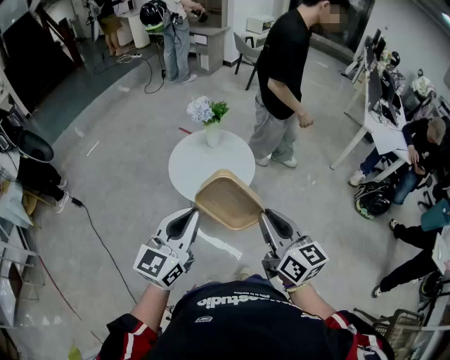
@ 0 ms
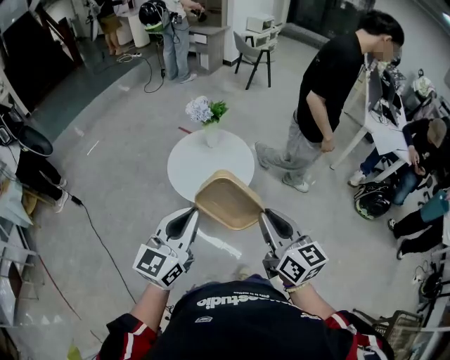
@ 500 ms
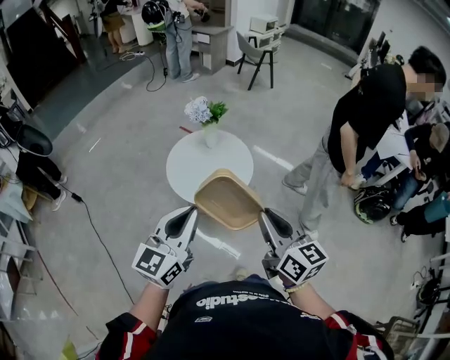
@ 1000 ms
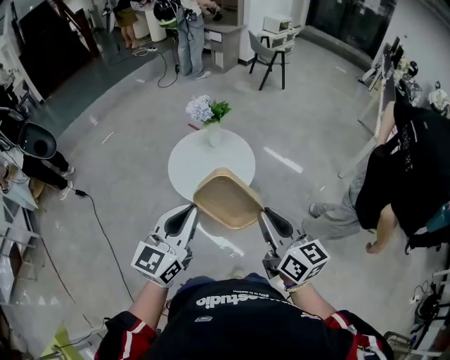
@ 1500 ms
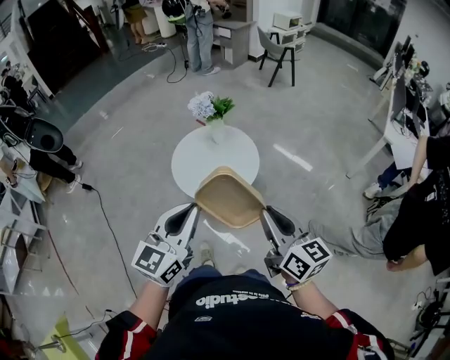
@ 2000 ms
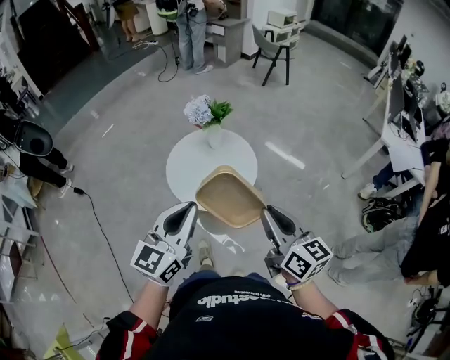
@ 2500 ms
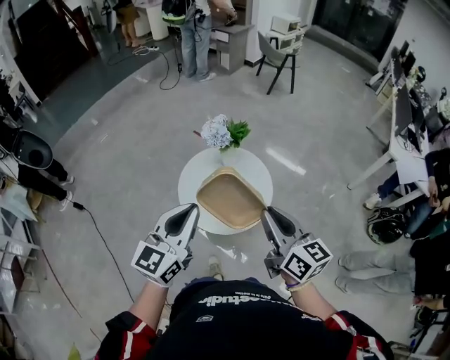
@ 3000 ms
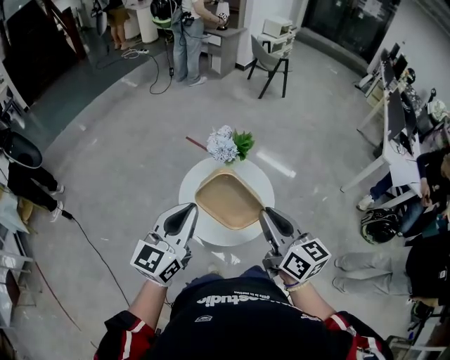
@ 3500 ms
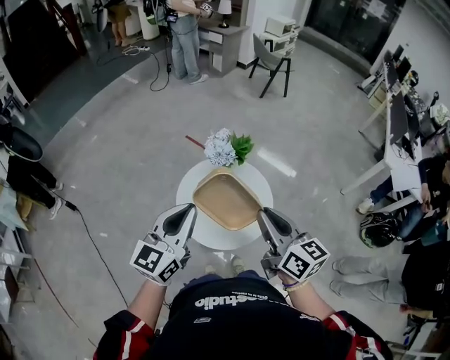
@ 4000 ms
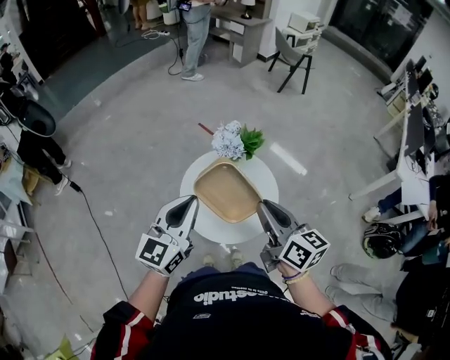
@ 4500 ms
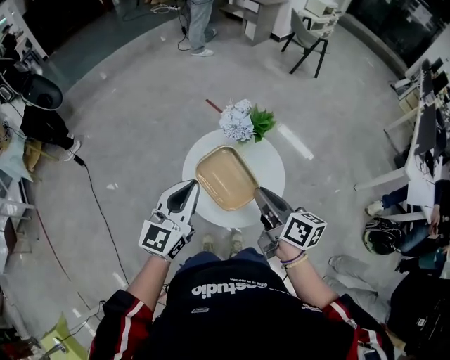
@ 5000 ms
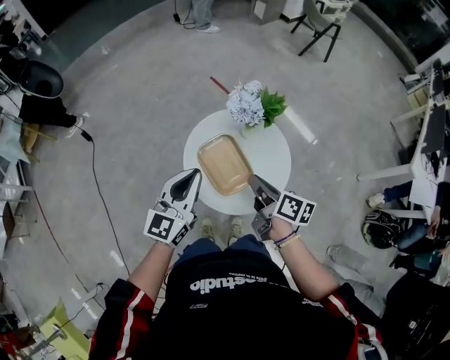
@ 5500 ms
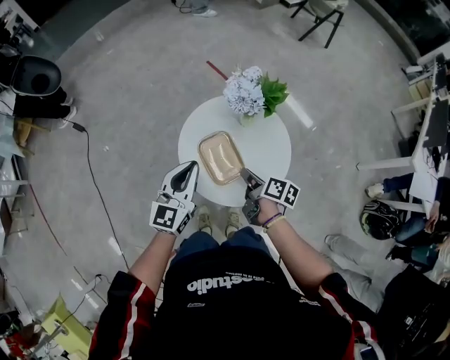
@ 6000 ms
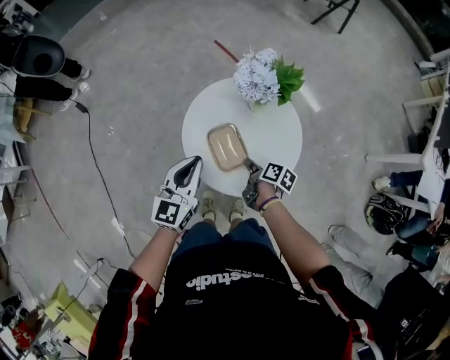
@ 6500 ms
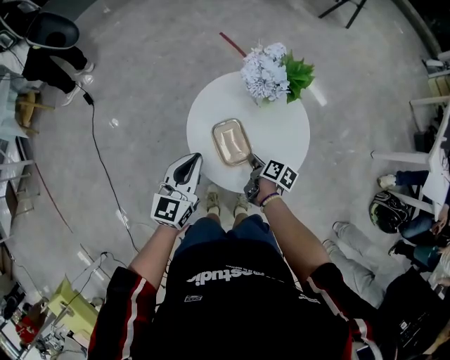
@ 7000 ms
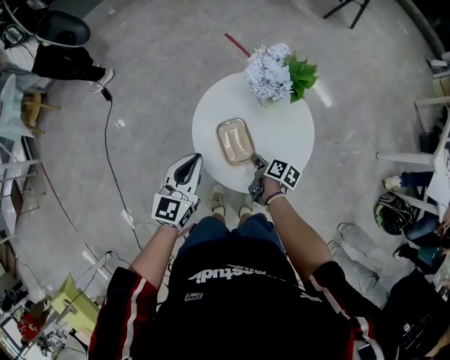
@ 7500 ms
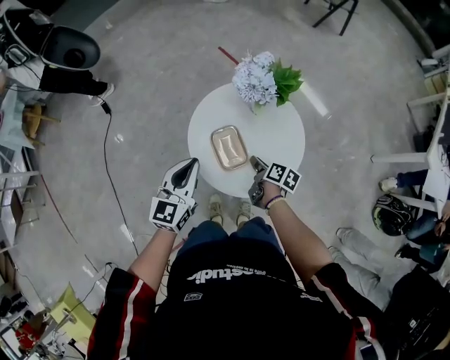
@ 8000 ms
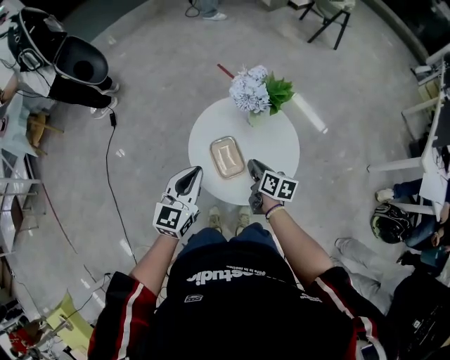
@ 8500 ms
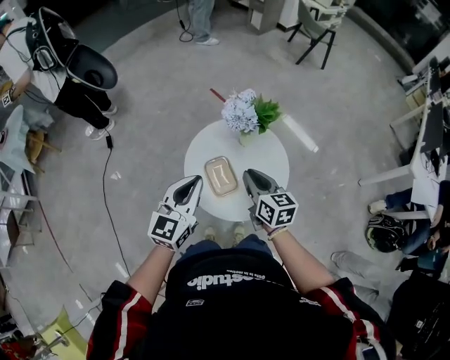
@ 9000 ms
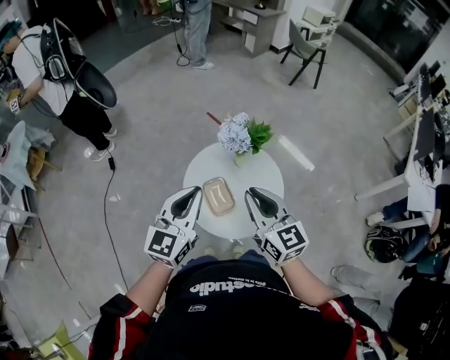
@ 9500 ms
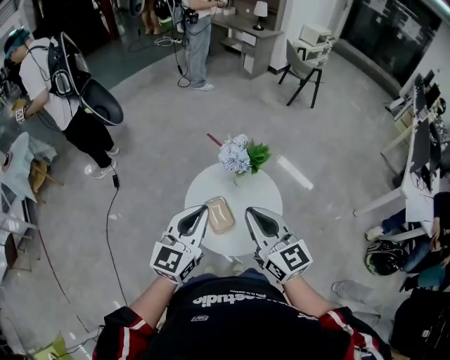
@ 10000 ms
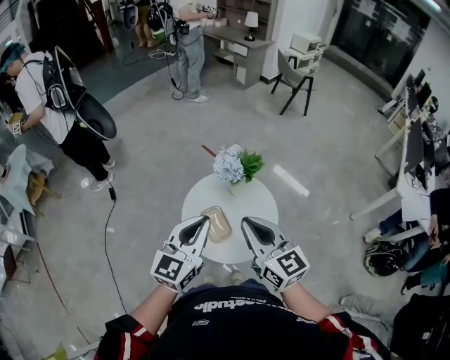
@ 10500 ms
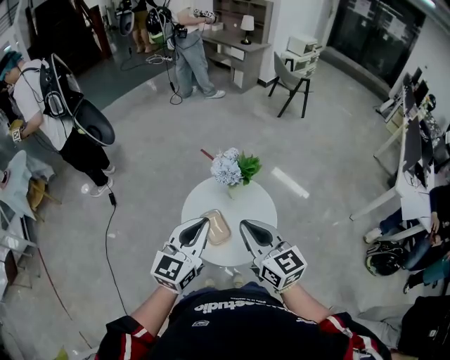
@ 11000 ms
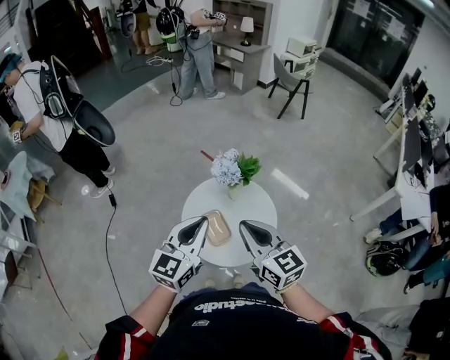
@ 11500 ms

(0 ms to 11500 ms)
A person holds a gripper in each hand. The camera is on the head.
0 ms - 2000 ms: The grippers both shift to the right by about 10 cm.
2000 ms - 4000 ms: The two grippers go approximately 30 cm forward and to the left.
4000 ms - 6000 ms: The right gripper heads downward, covering some 30 cm, and changes its angle by some 50 degrees. The left gripper shifts approximately 20 cm downward.
6000 ms - 7500 ms: The left gripper shifts about 5 cm downward. Meanwhile the right gripper heads downward, covering some 15 cm.
7500 ms - 9500 ms: The left gripper goes about 20 cm upward; the right gripper shifts approximately 40 cm upward, and rolls counterclockwise, seen from behind, by some 60 degrees.
9500 ms - 11500 ms: The right gripper moves about 5 cm.

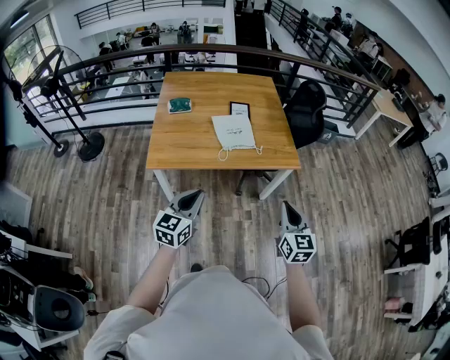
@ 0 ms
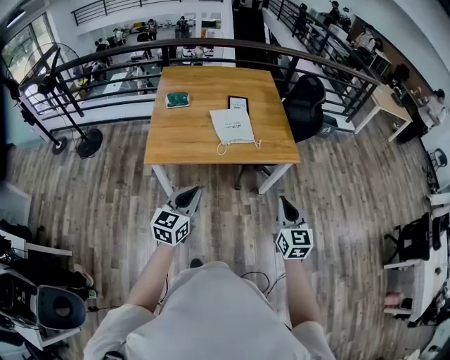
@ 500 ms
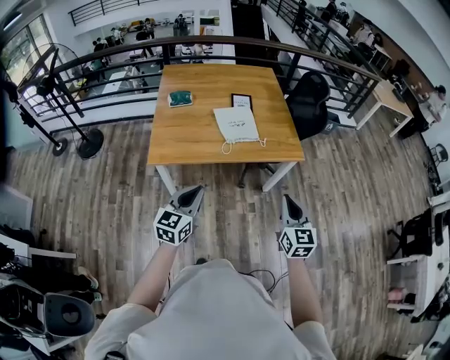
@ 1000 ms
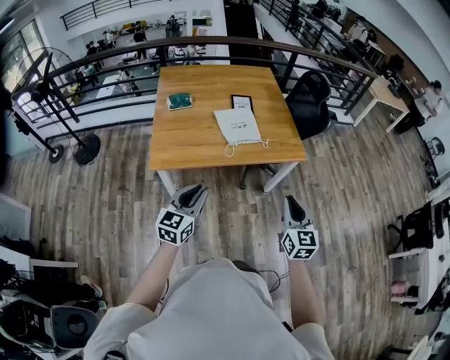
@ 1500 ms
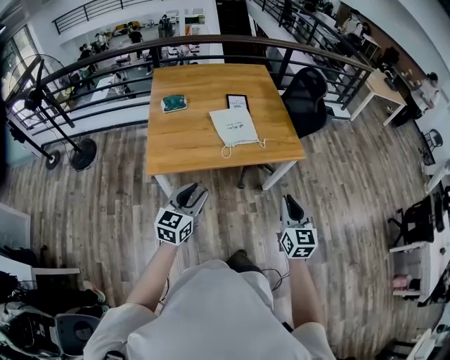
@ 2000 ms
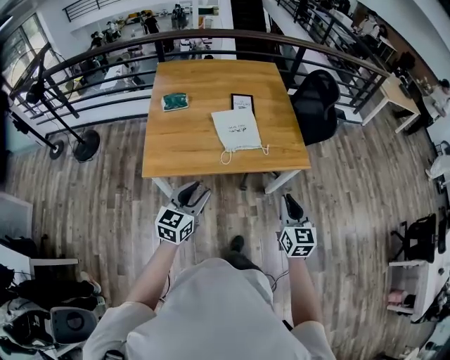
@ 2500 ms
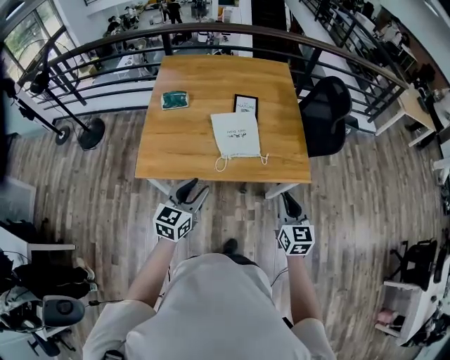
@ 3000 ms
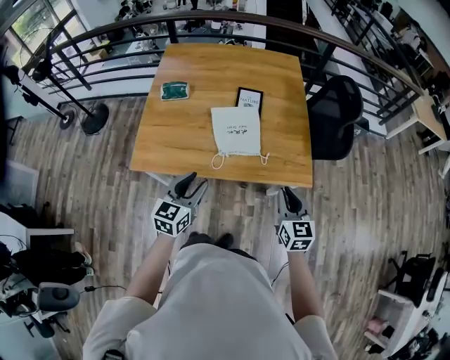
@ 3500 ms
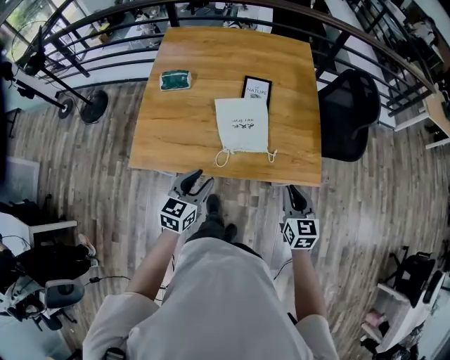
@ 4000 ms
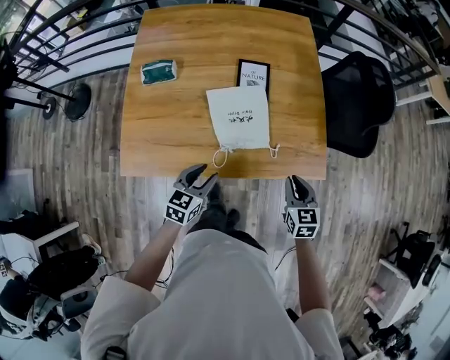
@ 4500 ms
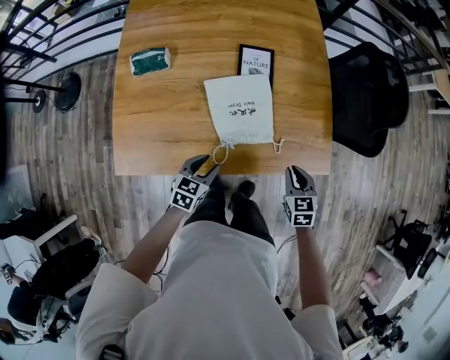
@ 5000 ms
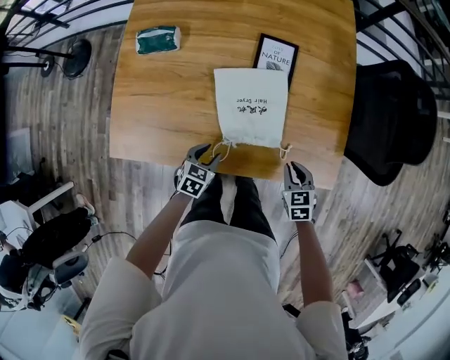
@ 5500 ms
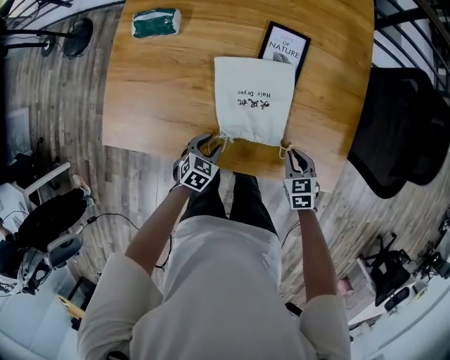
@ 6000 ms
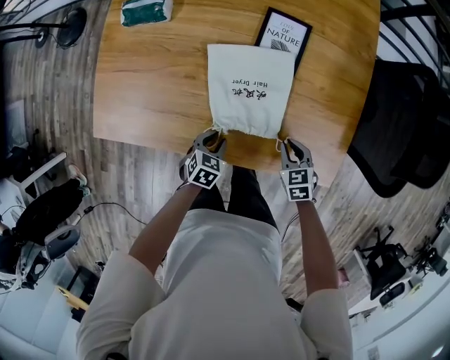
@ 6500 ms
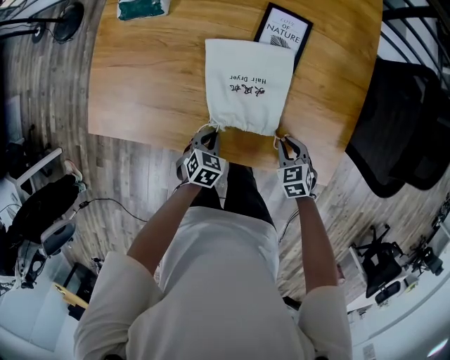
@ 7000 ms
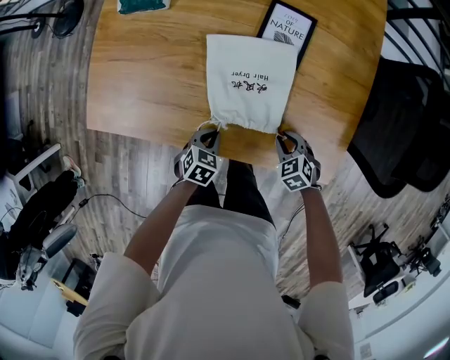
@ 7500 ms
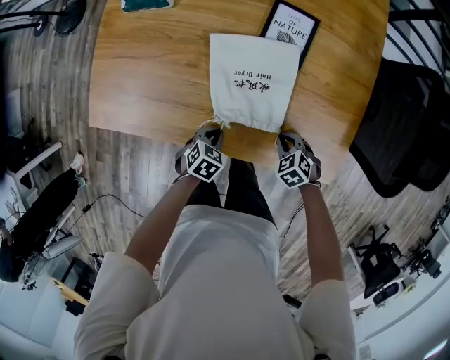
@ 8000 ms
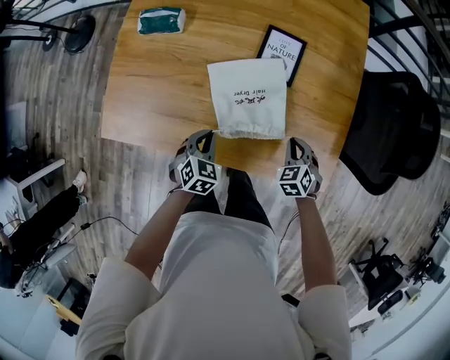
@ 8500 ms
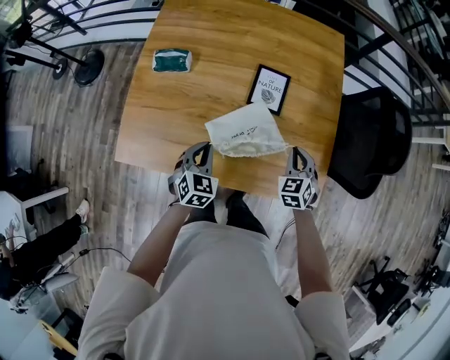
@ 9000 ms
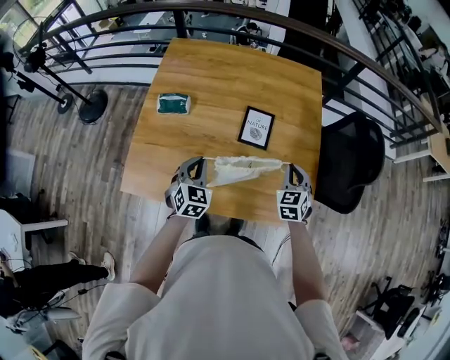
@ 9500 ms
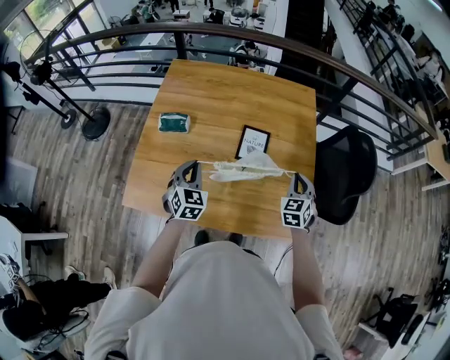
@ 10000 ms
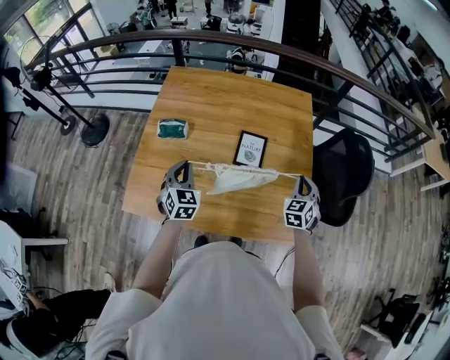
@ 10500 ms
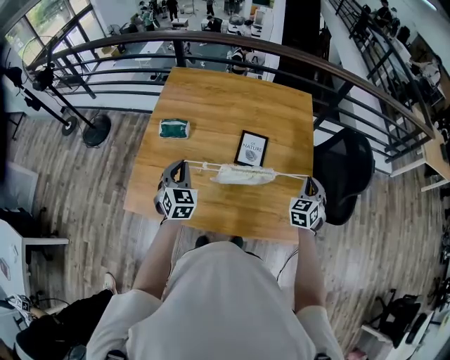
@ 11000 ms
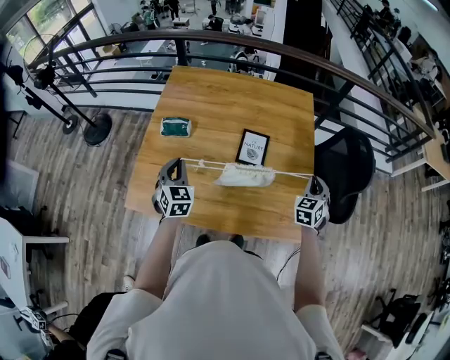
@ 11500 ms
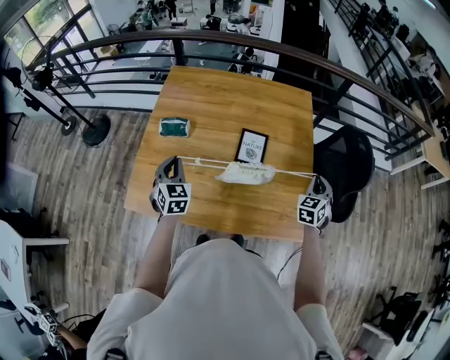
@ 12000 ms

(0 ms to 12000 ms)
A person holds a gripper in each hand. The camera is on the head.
0 ms - 2000 ms: The two grippers go some 5 cm to the left. The left gripper opens up.
2000 ms - 4000 ms: Both grippers move forward, some 30 cm. The right gripper rotates roughly 20 degrees.
4000 ms - 6000 ms: Both grippers travel together downward and forward, roughly 30 cm. The right gripper swivels about 40 degrees. The left gripper tips its fingers downward by about 30 degrees.
6000 ms - 8000 ms: The right gripper goes about 5 cm downward, and turns by roughly 30 degrees. Meanwhile the left gripper closes.
8000 ms - 10000 ms: The grippers both shift upward by about 35 cm. The right gripper points its fingers approximately 40 degrees further upward, while the left gripper points its fingers roughly 40 degrees further upward.
10000 ms - 12000 ms: The left gripper heads to the left, covering some 5 cm. The right gripper heads to the right, covering approximately 10 cm.

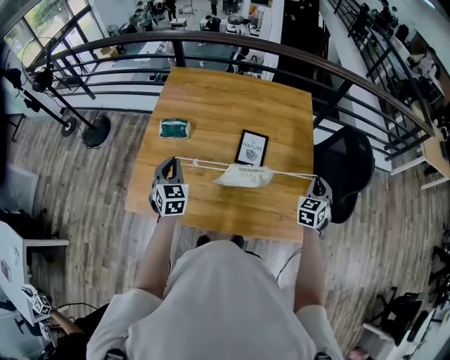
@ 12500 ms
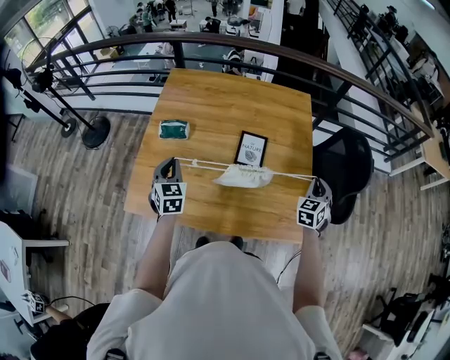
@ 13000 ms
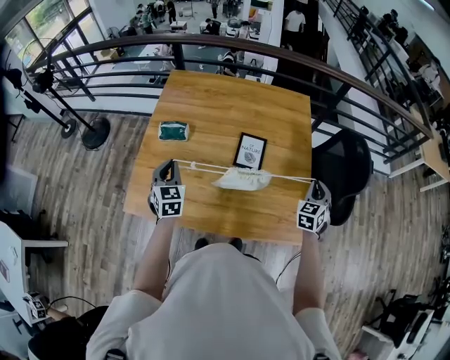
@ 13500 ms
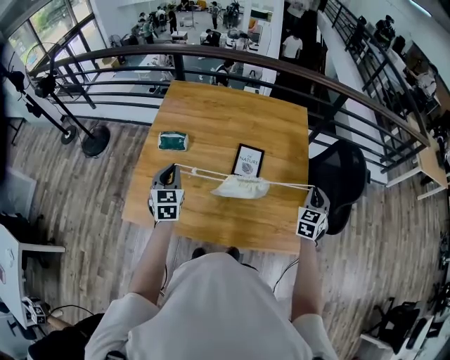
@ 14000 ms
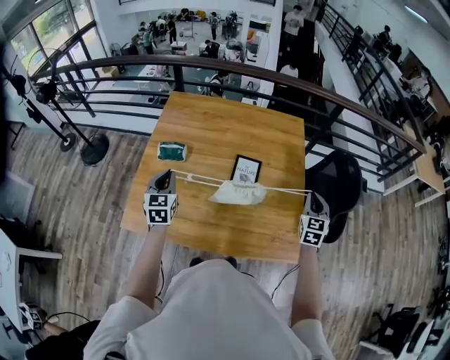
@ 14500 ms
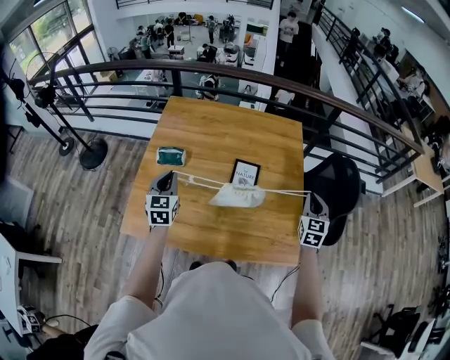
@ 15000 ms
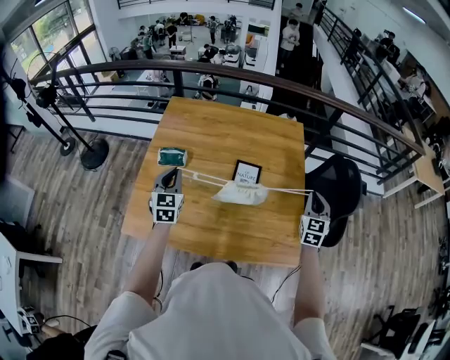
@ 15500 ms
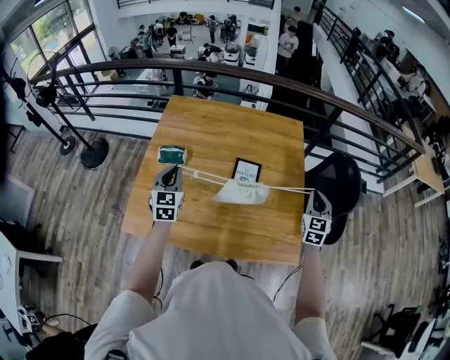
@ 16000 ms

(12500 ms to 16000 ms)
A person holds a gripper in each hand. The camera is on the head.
12500 ms - 14500 ms: The grippers stay close to where they were, moving slightly.
14500 ms - 16000 ms: The grippers make only small movements.
